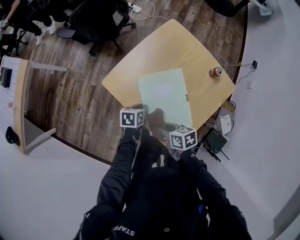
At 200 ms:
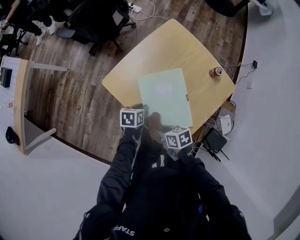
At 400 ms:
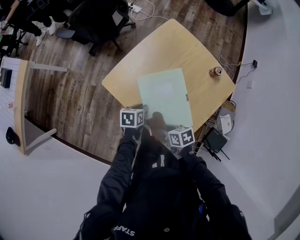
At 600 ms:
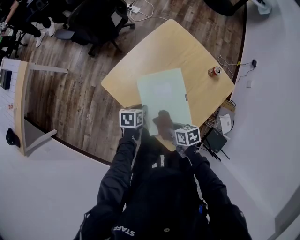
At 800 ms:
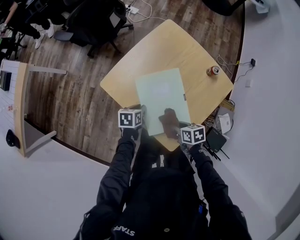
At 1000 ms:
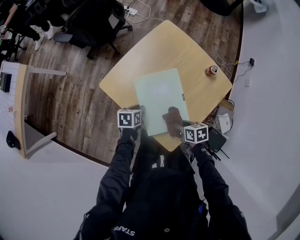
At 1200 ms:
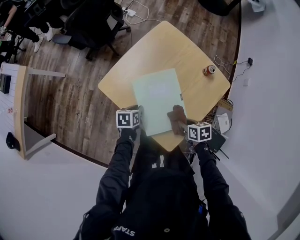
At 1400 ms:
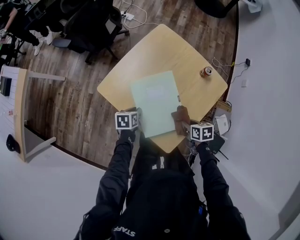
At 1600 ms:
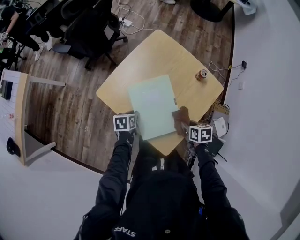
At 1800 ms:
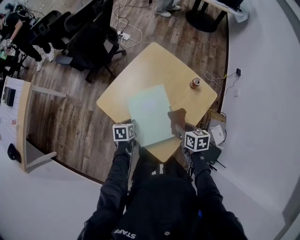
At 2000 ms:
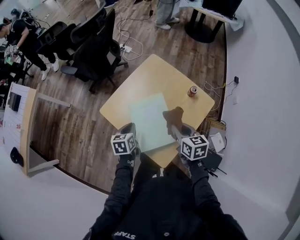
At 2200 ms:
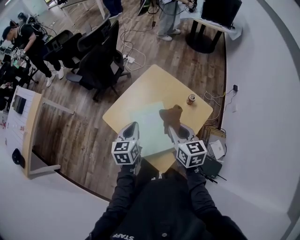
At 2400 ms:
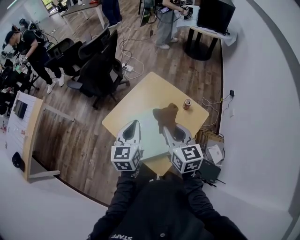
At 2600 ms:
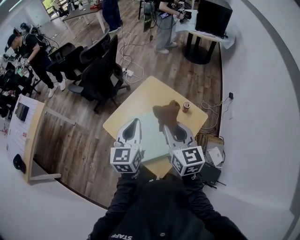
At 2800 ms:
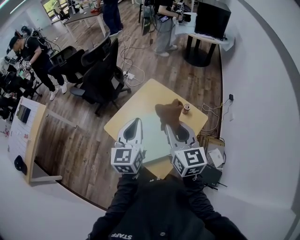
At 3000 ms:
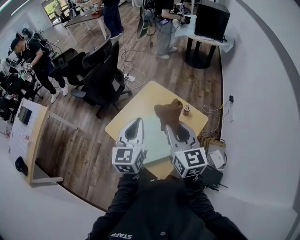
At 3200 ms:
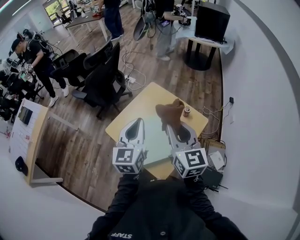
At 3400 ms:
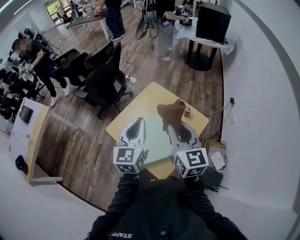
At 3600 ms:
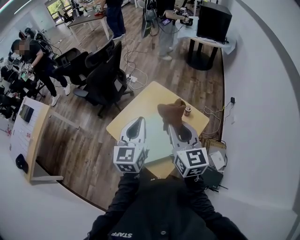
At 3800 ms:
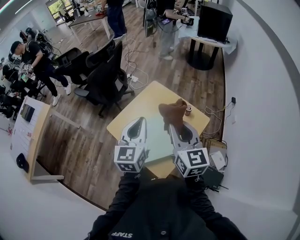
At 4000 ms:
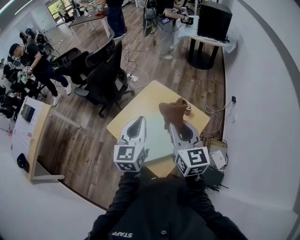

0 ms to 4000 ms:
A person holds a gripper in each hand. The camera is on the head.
0 ms to 1400 ms: The right gripper moves to the right, some 20 cm, and swivels about 20 degrees.
1400 ms to 2600 ms: Both grippers move upward, about 40 cm. The right gripper angles its fingers upward, by about 50 degrees, while the left gripper angles its fingers upward, by roughly 50 degrees.
2600 ms to 4000 ms: The grippers stay close to where they were, moving slightly.

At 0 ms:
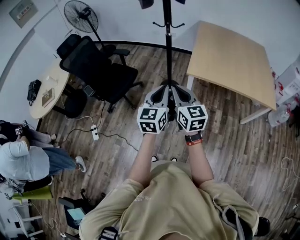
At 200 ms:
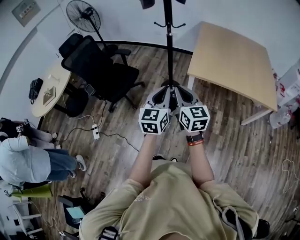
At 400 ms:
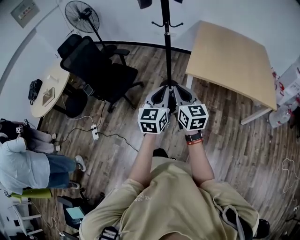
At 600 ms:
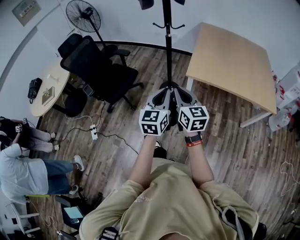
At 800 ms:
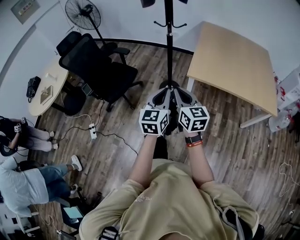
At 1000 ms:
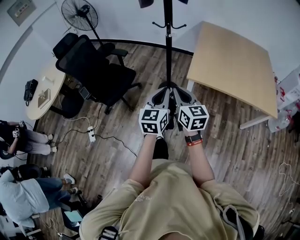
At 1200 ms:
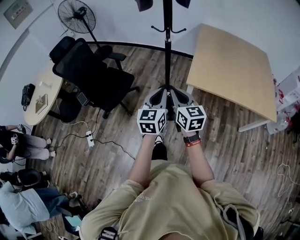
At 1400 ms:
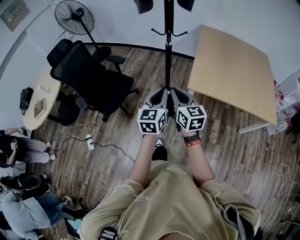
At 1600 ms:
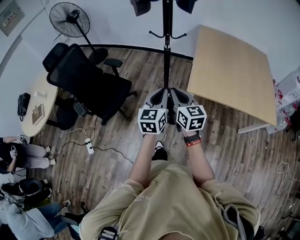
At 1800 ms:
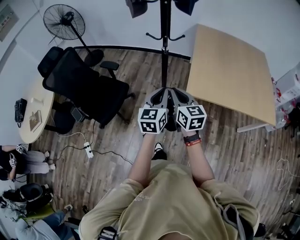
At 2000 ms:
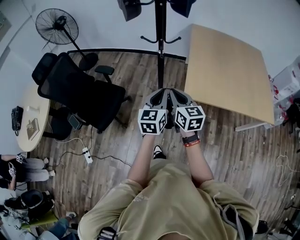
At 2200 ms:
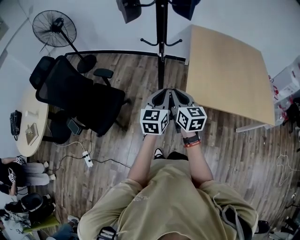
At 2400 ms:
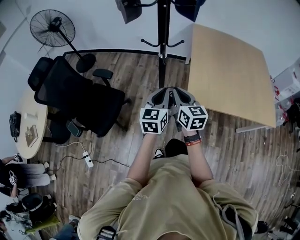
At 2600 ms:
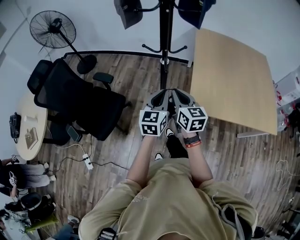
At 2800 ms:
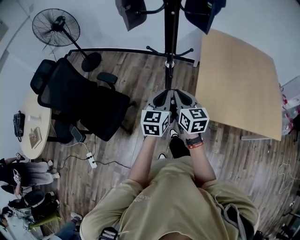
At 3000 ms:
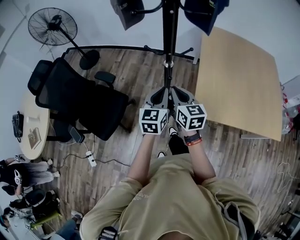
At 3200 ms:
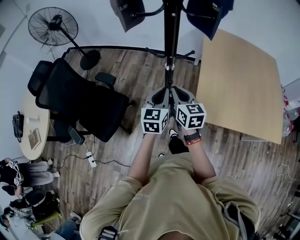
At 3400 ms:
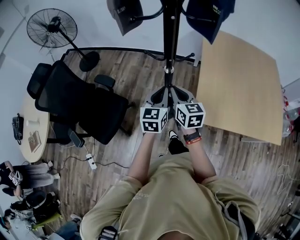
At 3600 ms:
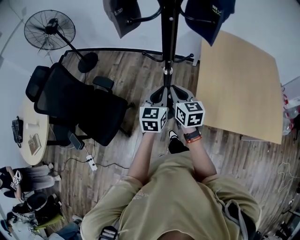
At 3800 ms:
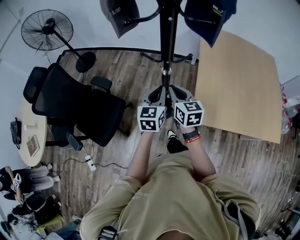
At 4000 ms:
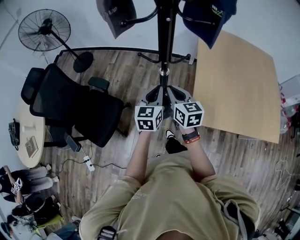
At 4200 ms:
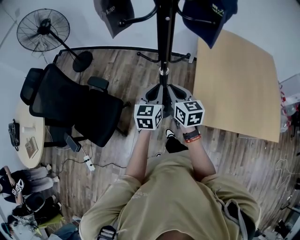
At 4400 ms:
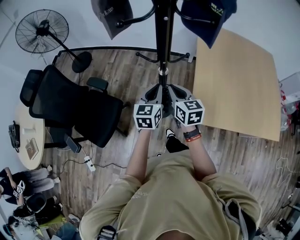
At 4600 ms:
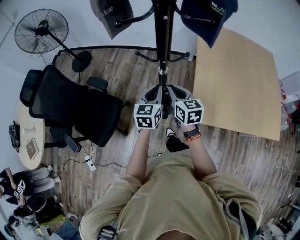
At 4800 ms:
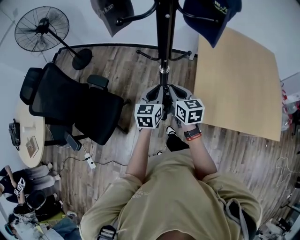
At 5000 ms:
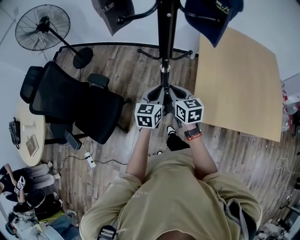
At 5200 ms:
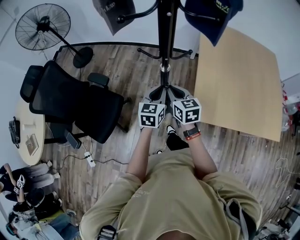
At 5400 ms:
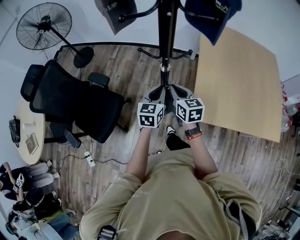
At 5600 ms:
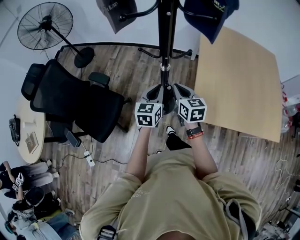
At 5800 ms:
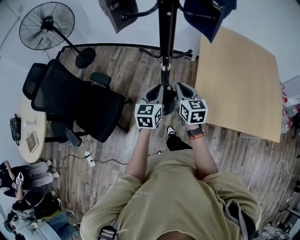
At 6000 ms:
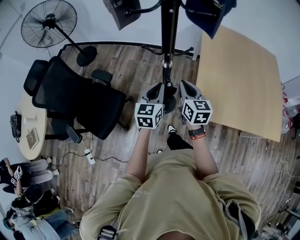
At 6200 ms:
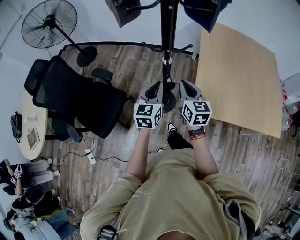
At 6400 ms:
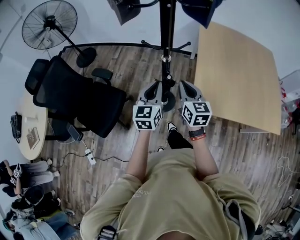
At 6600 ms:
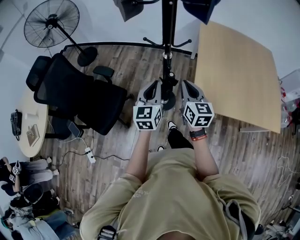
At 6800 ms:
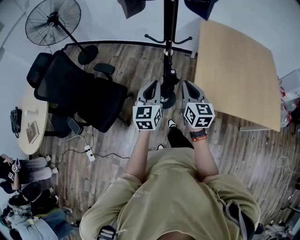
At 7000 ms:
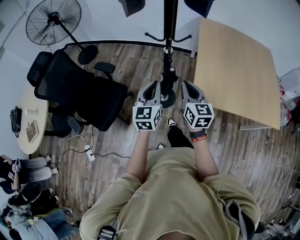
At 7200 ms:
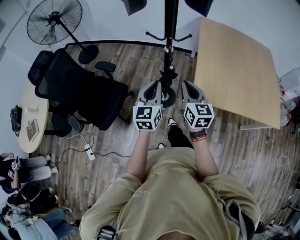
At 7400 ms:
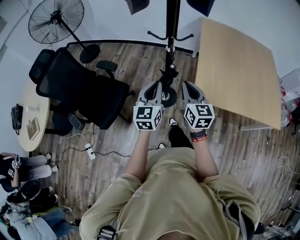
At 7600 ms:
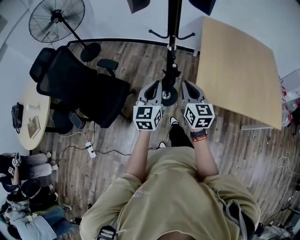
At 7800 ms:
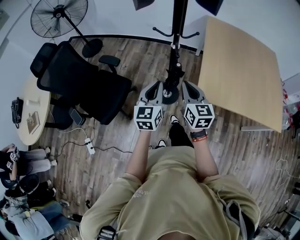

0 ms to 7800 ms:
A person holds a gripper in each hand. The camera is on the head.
0 ms to 1600 ms: The two grippers go some 25 cm forward.
1600 ms to 3200 ms: Both grippers move forward, about 35 cm.
3200 ms to 4600 ms: The two grippers go approximately 5 cm forward.
4600 ms to 6200 ms: The grippers both shift backward by approximately 5 cm.
6200 ms to 7800 ms: Both grippers travel together backward, approximately 15 cm.

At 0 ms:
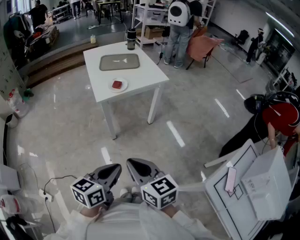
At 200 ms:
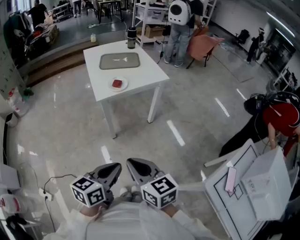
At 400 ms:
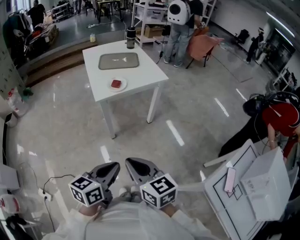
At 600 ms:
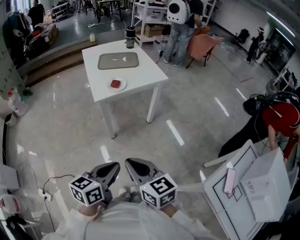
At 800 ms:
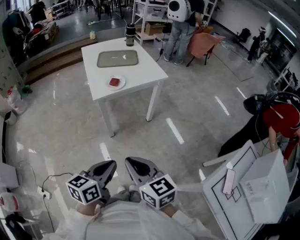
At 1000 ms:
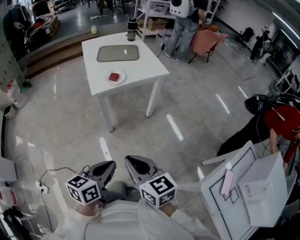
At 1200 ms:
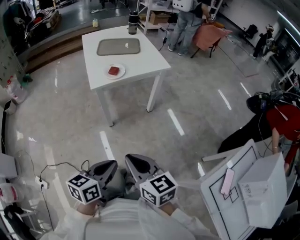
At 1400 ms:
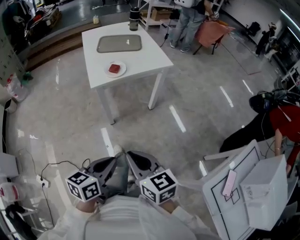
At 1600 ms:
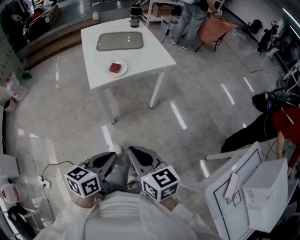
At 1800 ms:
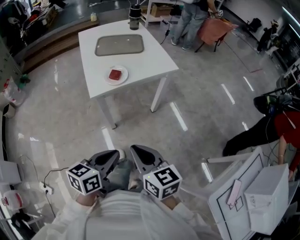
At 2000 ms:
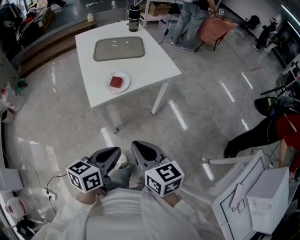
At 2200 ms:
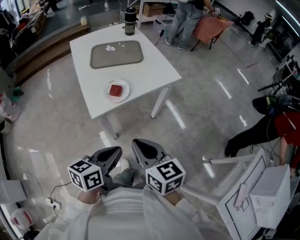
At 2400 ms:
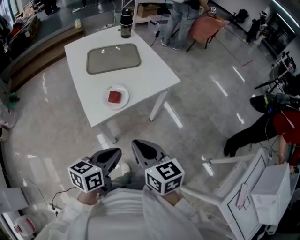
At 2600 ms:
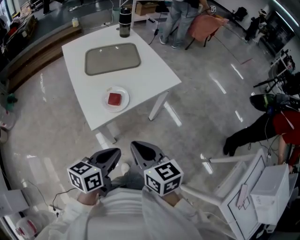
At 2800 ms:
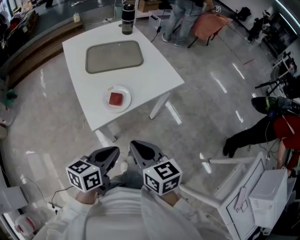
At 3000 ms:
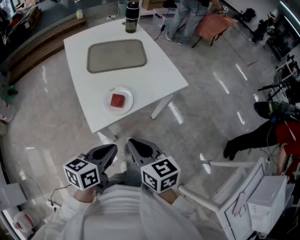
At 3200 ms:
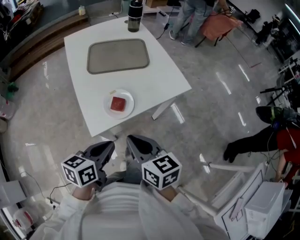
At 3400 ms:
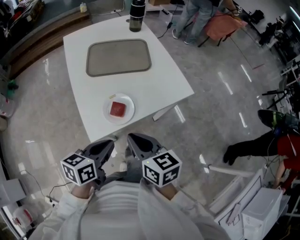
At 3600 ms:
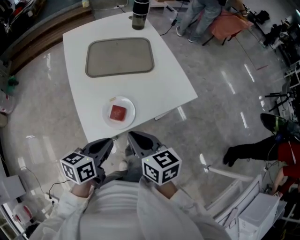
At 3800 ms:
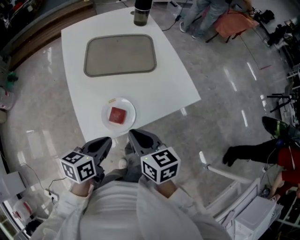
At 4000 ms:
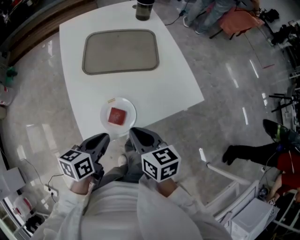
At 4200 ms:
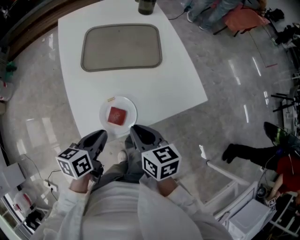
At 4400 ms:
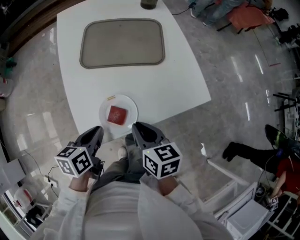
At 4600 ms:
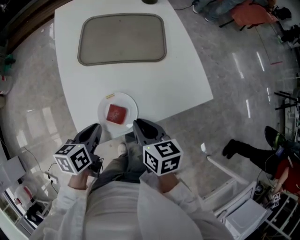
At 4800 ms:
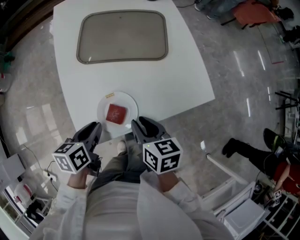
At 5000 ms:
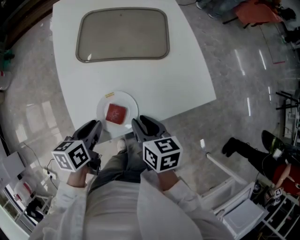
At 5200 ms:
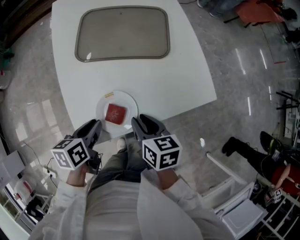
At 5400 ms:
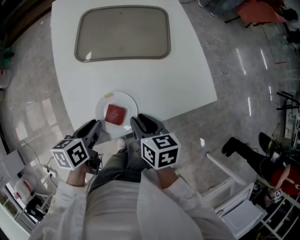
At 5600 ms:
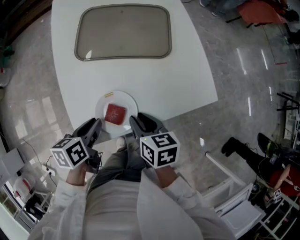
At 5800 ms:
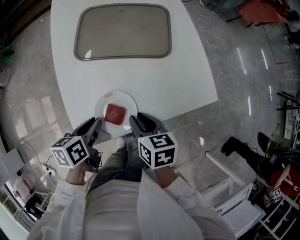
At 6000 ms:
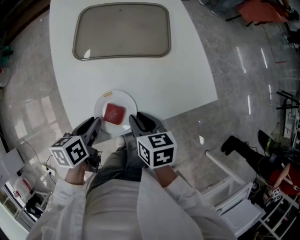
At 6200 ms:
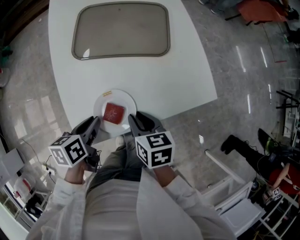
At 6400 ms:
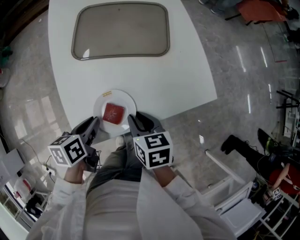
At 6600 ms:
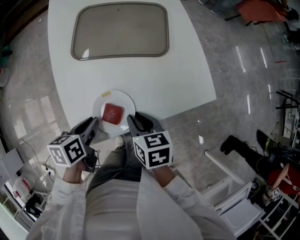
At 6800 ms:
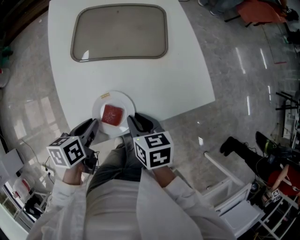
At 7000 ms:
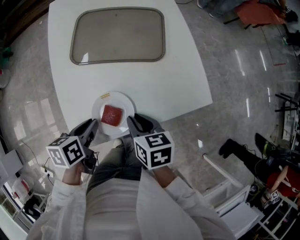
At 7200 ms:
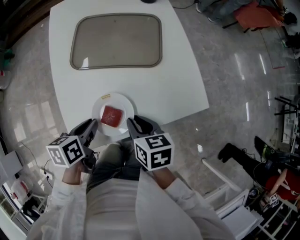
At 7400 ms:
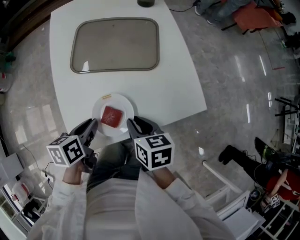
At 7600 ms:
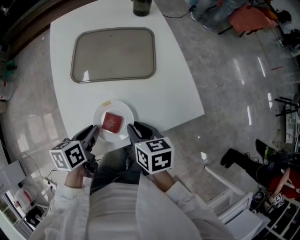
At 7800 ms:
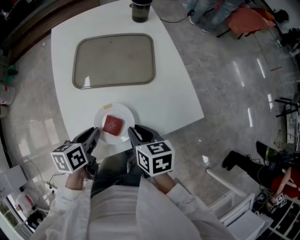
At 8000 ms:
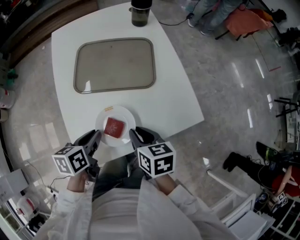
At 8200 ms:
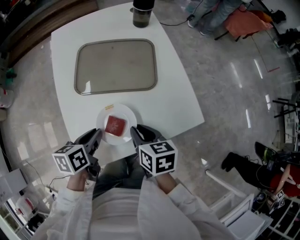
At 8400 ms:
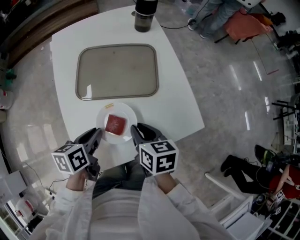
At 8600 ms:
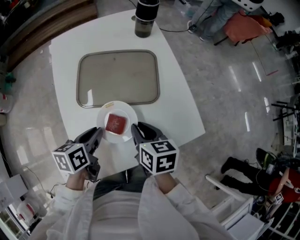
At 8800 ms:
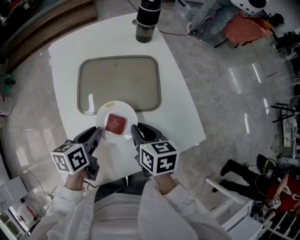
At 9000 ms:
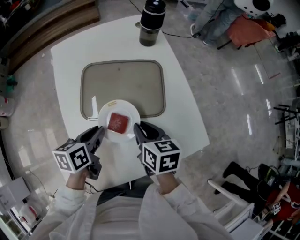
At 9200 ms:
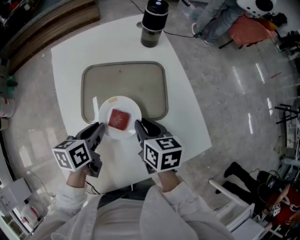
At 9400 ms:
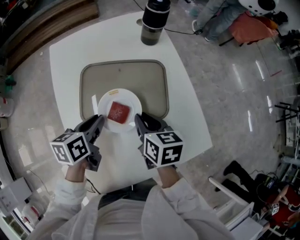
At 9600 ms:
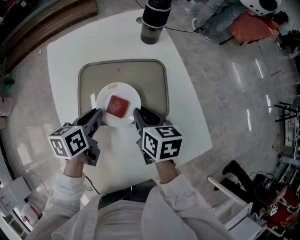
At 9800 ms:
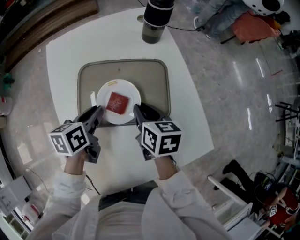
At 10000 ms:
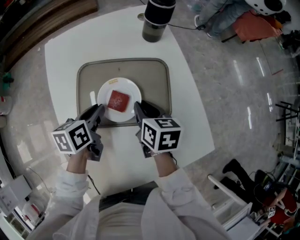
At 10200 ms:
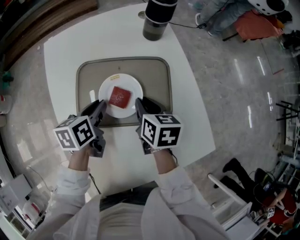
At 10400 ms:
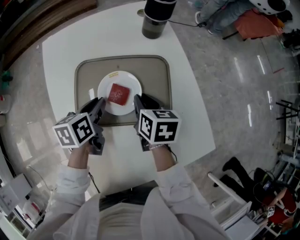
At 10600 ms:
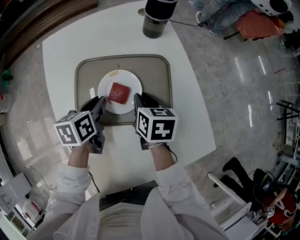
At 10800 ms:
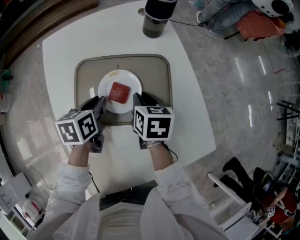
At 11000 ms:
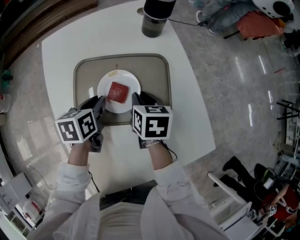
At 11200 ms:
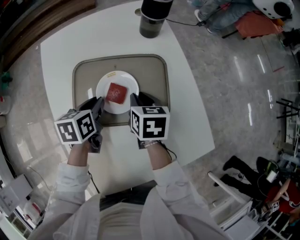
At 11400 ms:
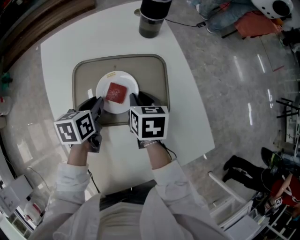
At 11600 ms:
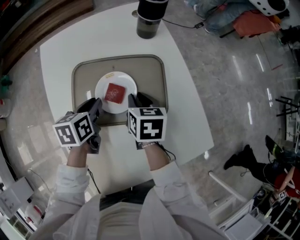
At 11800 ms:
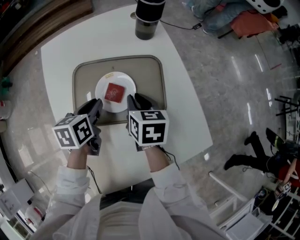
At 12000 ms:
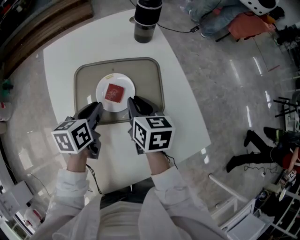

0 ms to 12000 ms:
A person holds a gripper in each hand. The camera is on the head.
0 ms to 1600 ms: Both grippers travel together forward, approximately 10 cm.
1600 ms to 3000 ms: The two grippers go about 30 cm forward and to the left.
3000 ms to 4400 ms: Both grippers travel together forward and downward, approximately 20 cm. The left gripper rotates approximately 30 degrees.
4400 ms to 6000 ms: The right gripper moves downward, approximately 5 cm.
6000 ms to 7600 ms: The right gripper shifts by roughly 5 cm, while the left gripper changes place by roughly 5 cm.
7600 ms to 9000 ms: The grippers both shift forward by about 15 cm.
9000 ms to 10400 ms: The two grippers go about 10 cm forward.
10400 ms to 12000 ms: There are only small adjustments of the grippers.
